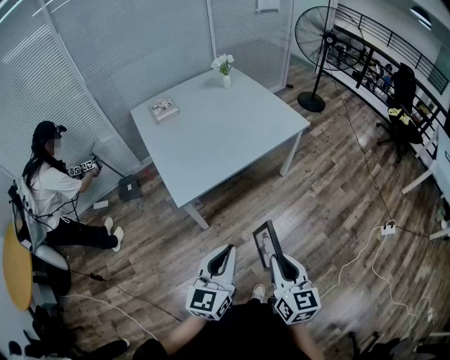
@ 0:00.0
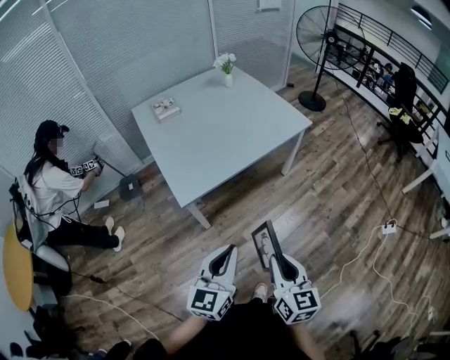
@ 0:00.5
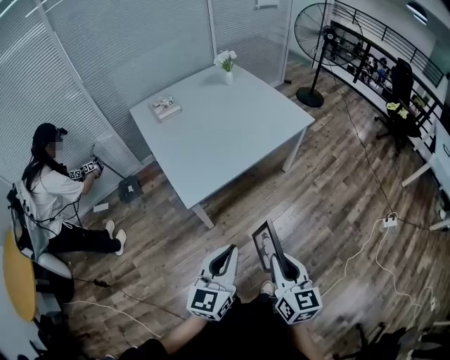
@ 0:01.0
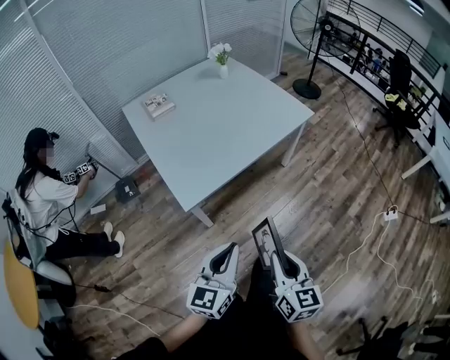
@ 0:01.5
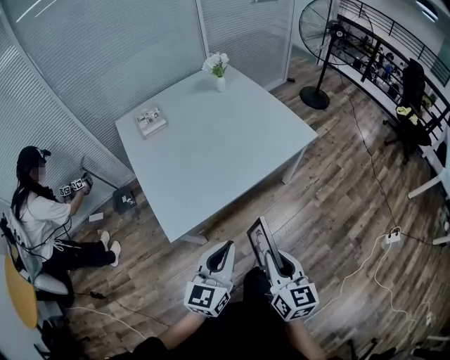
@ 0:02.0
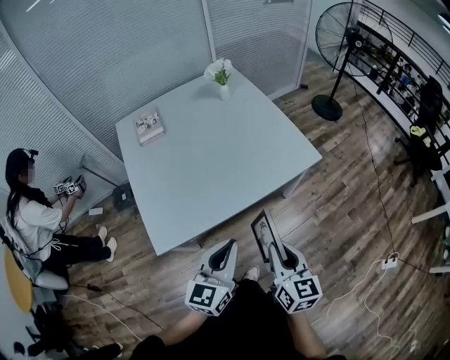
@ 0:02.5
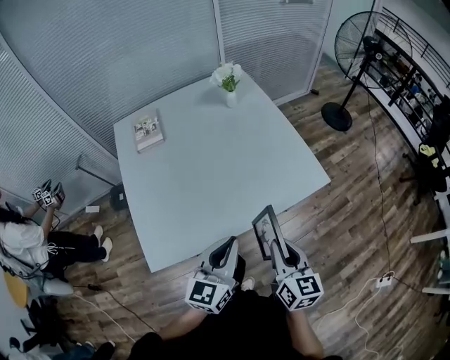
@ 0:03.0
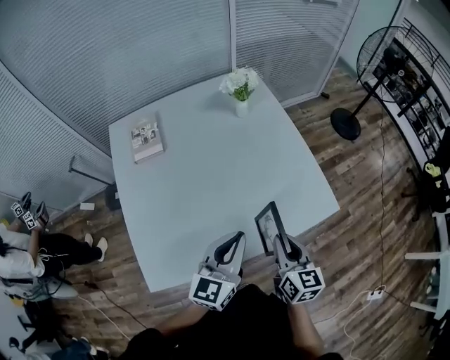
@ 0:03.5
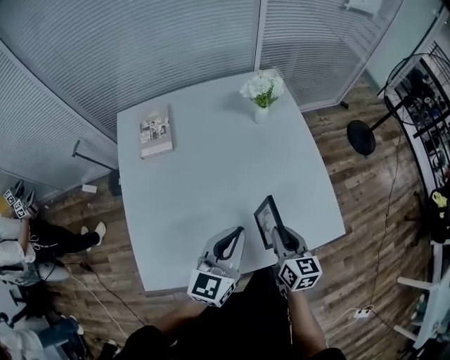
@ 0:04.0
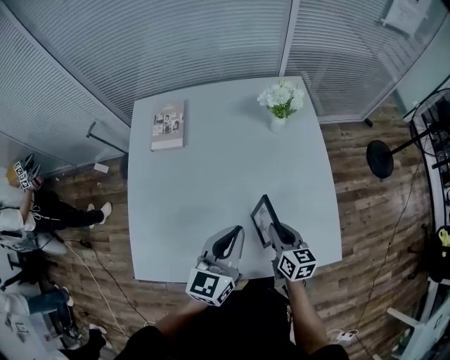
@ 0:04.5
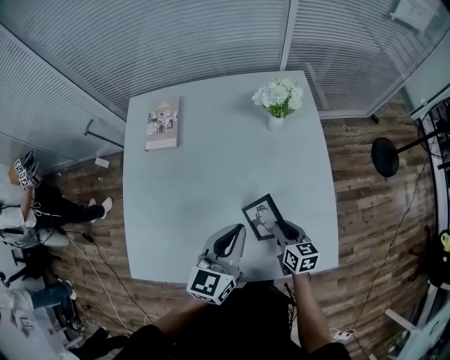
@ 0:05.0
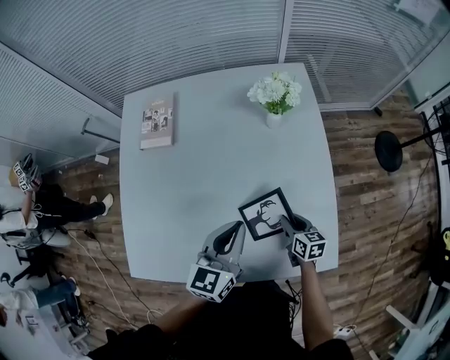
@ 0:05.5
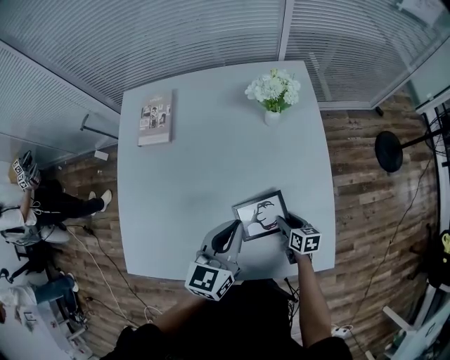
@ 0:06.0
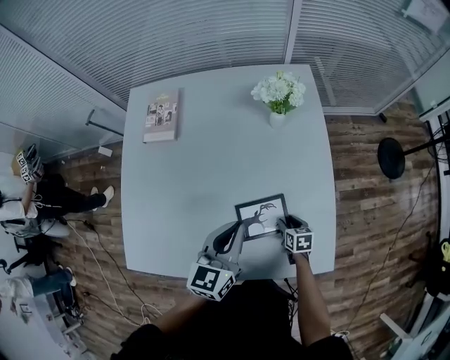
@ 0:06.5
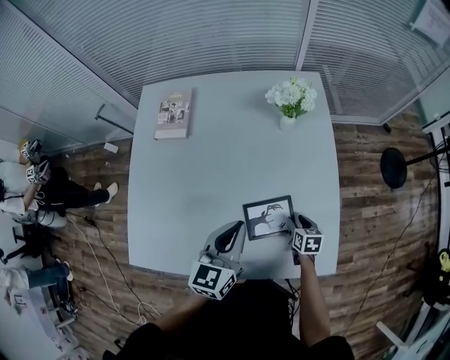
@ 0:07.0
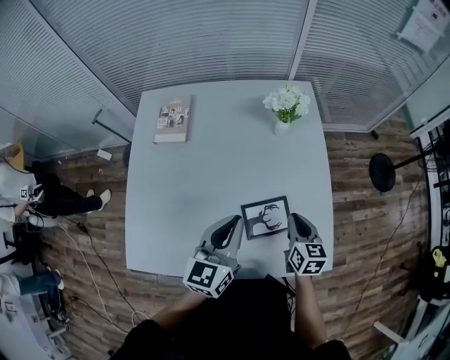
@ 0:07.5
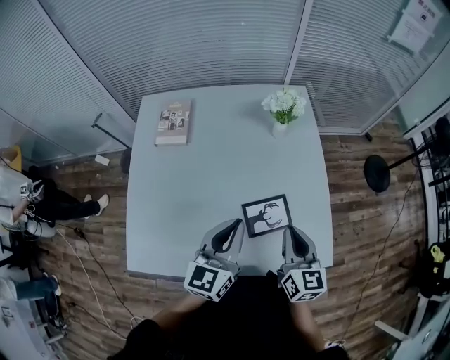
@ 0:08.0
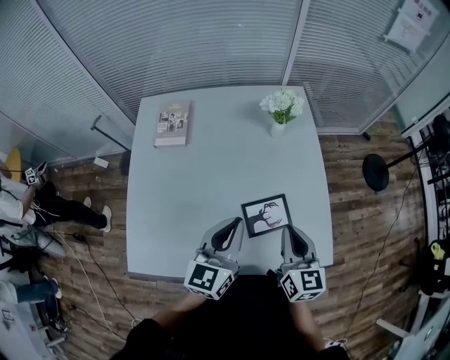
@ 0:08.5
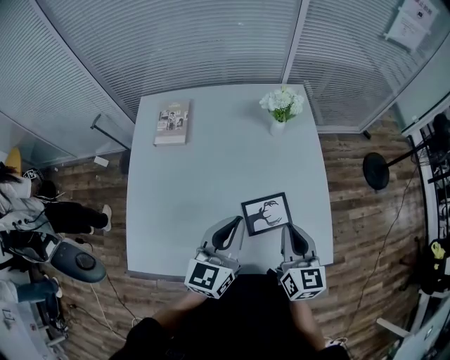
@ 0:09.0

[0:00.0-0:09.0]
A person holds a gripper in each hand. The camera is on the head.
0:00.0 to 0:02.0: Both grippers travel together forward, roughly 20 cm.
0:02.0 to 0:04.5: The two grippers travel together, about 60 cm. The right gripper swivels some 30 degrees. Meanwhile the left gripper changes its angle by roughly 30 degrees.
0:04.5 to 0:07.0: The right gripper shifts about 20 cm downward and to the right, rotates roughly 30 degrees, and opens up.
0:07.0 to 0:09.0: The left gripper travels upward by some 5 cm, while the right gripper goes approximately 30 cm upward, angles its fingers upward, by approximately 40 degrees, and closes.

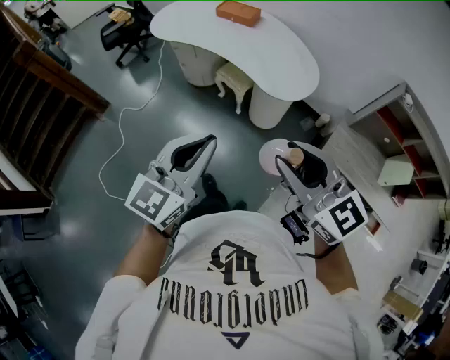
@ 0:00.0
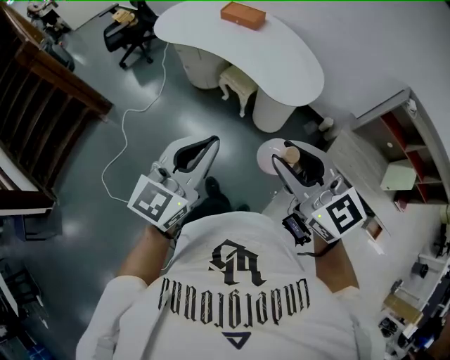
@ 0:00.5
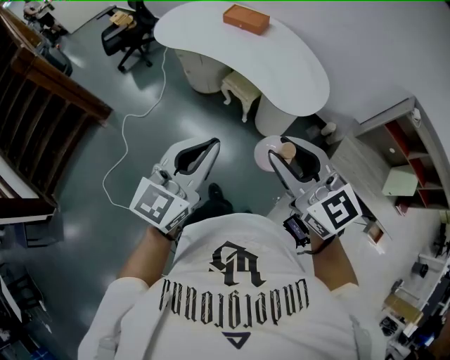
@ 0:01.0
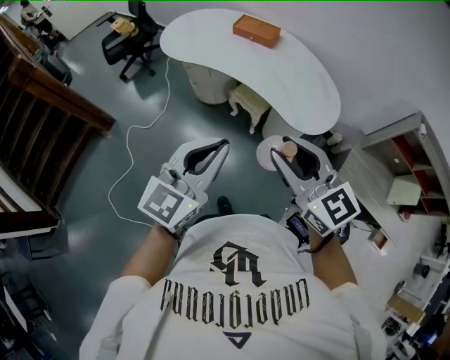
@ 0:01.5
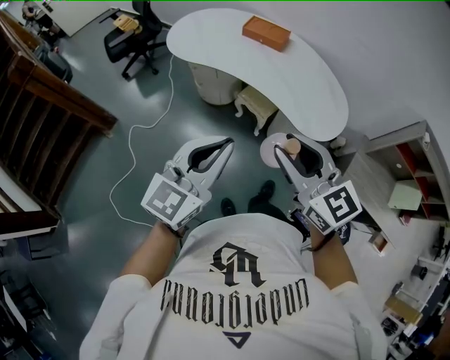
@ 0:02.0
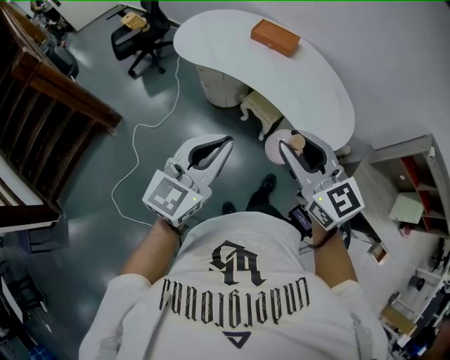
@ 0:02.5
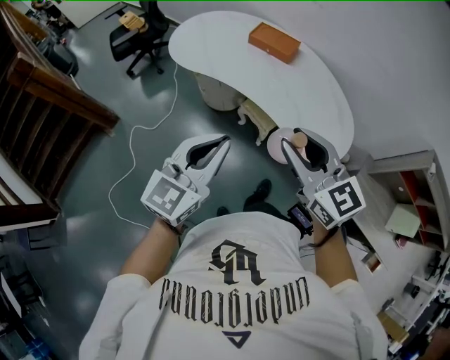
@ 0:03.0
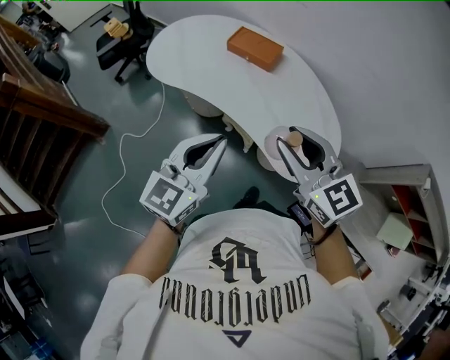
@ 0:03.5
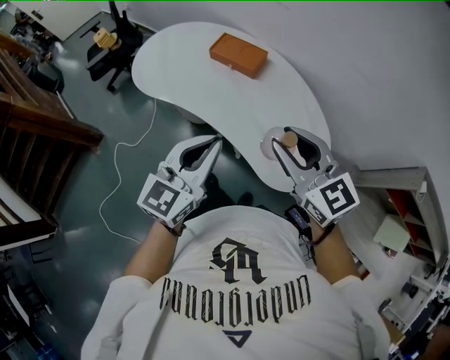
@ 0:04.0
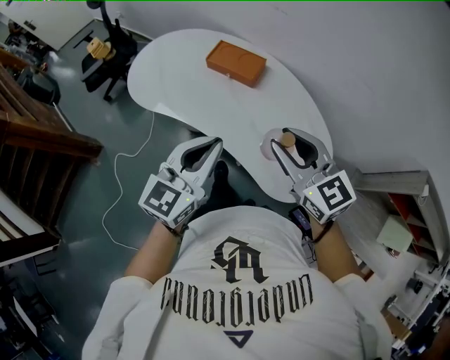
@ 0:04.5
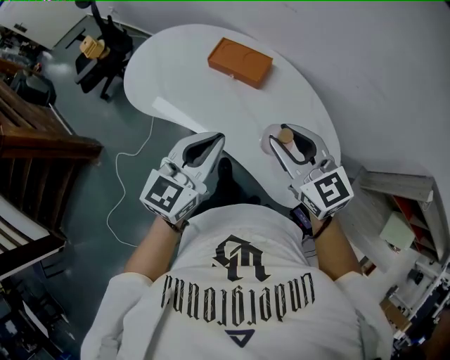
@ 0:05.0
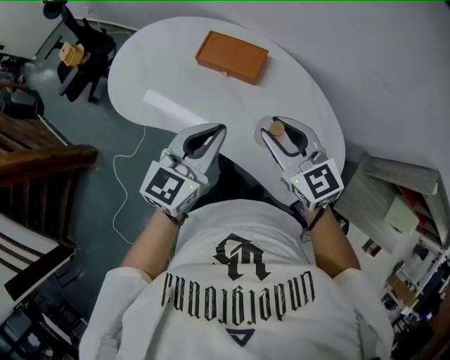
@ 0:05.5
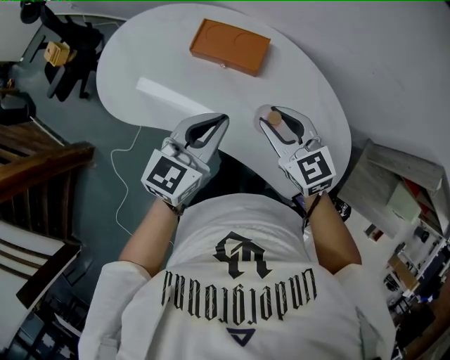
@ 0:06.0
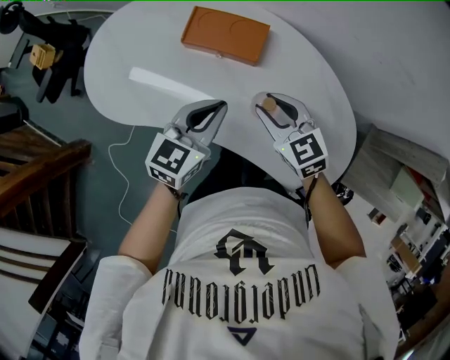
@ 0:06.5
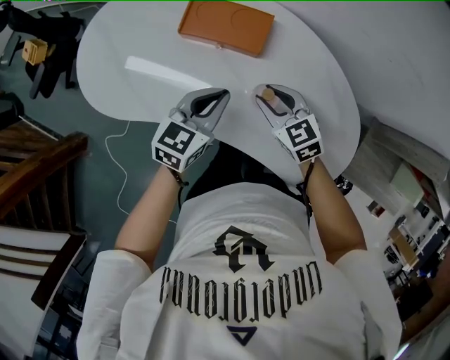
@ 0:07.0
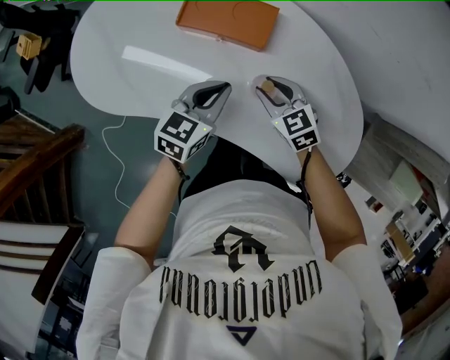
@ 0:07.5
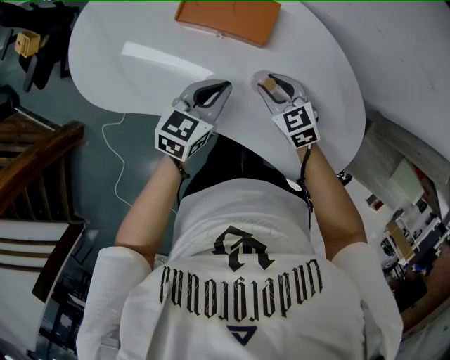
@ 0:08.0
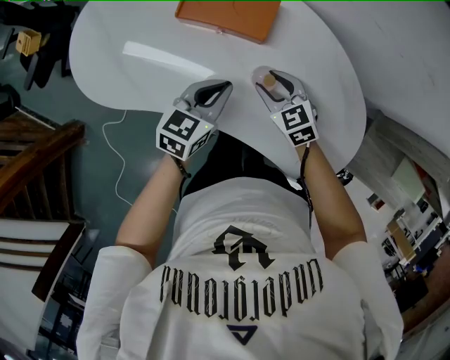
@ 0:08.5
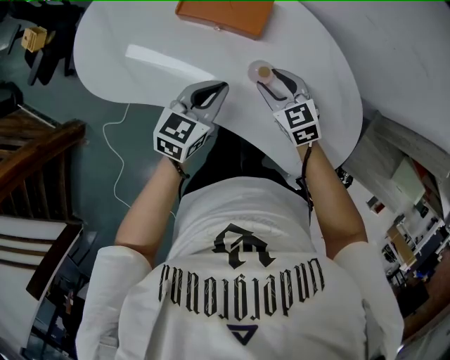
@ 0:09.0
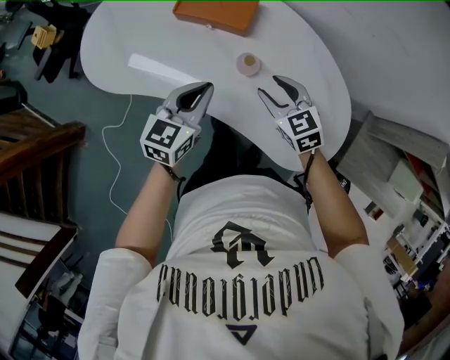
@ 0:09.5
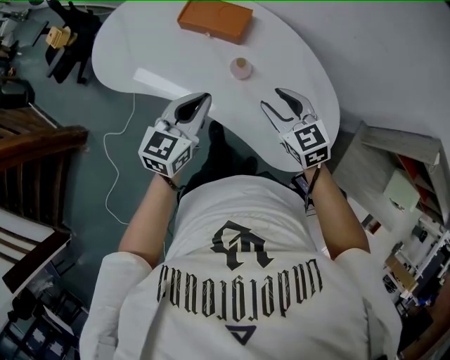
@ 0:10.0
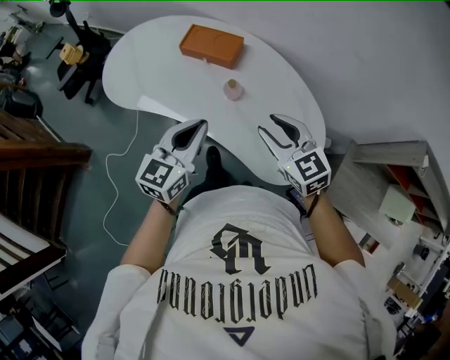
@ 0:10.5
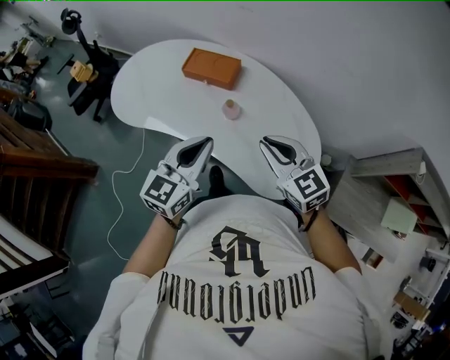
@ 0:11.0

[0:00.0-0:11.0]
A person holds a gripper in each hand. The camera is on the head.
0:00.0 to 0:02.0: Both grippers move forward and to the left, roughly 25 cm.
0:02.0 to 0:03.5: Both grippers travel together forward and to the right, some 25 cm.
0:03.5 to 0:05.5: The left gripper heads forward, covering approximately 25 cm. The right gripper heads forward and downward, covering about 25 cm.
0:05.5 to 0:07.5: The right gripper heads downward, covering approximately 25 cm, and turns by roughly 20 degrees; the left gripper shifts approximately 25 cm downward and forward.
0:07.5 to 0:09.0: The left gripper heads backward, covering approximately 5 cm.
0:09.0 to 0:11.0: The right gripper heads upward, backward and to the right, covering about 35 cm, swivels about 20 degrees, and closes its fingers. The left gripper heads upward and backward, covering approximately 30 cm, and changes its angle by some 20 degrees.

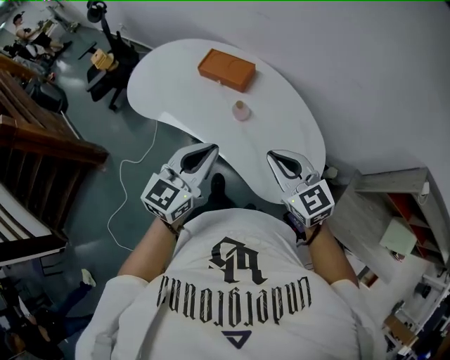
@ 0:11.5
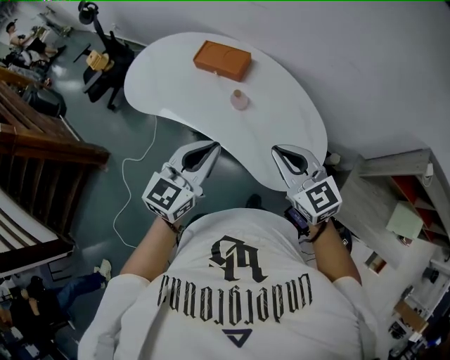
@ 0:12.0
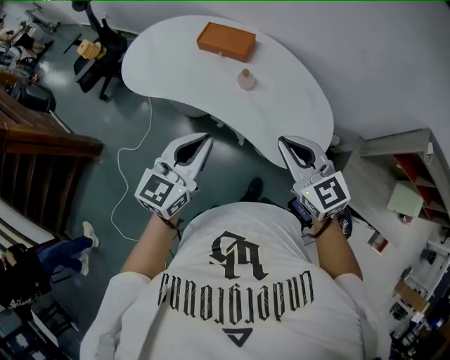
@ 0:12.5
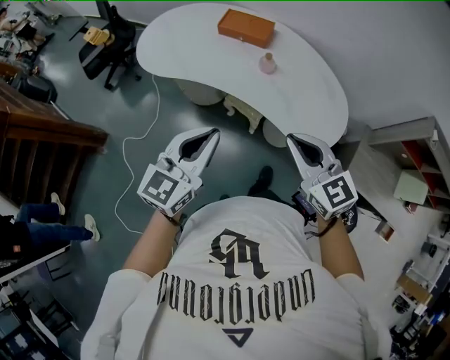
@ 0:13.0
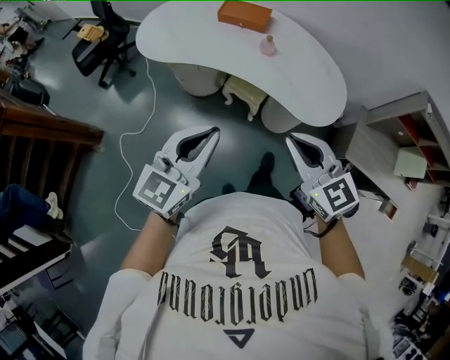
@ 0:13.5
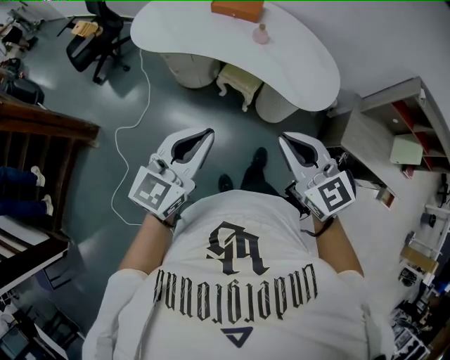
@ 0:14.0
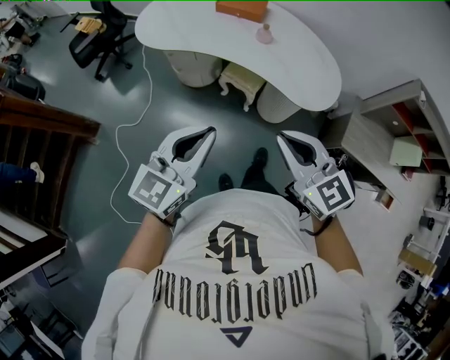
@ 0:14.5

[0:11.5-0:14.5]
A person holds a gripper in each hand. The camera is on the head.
0:11.5 to 0:13.0: The left gripper moves to the left and backward, approximately 20 cm, while the right gripper heads backward and to the left, covering about 20 cm.
0:13.0 to 0:14.5: The left gripper heads backward, covering roughly 15 cm. The right gripper is displaced backward and to the left by roughly 20 cm.

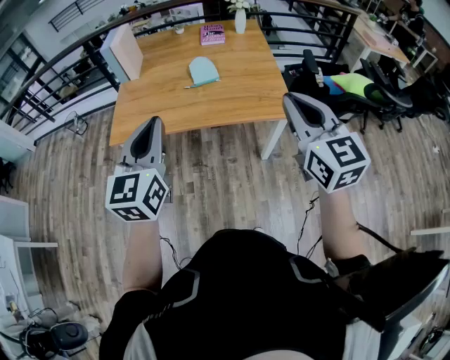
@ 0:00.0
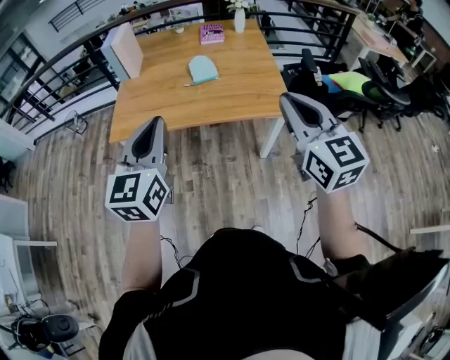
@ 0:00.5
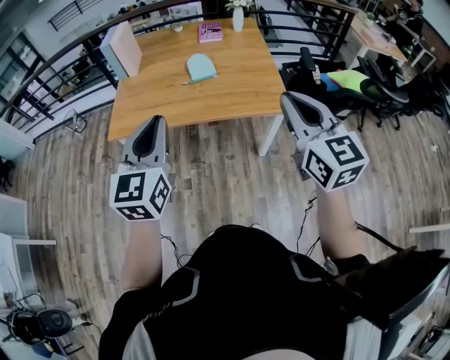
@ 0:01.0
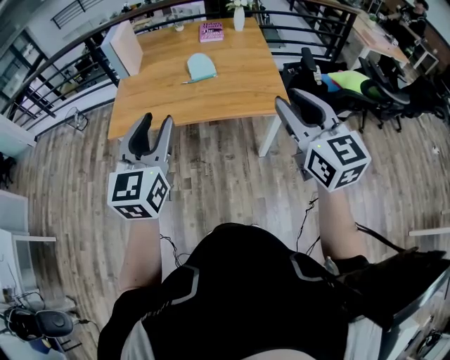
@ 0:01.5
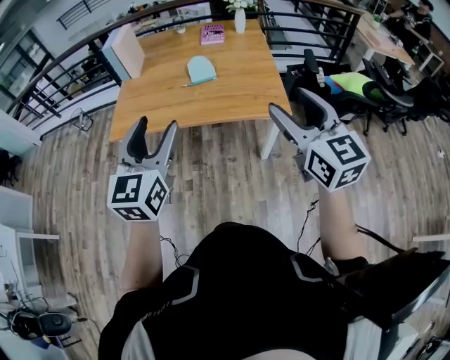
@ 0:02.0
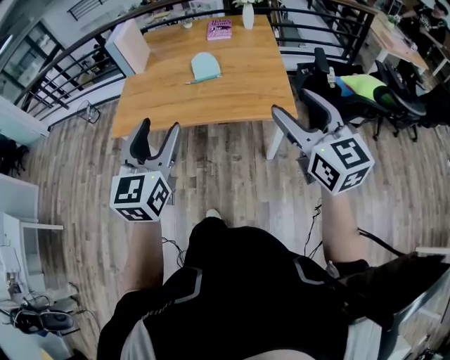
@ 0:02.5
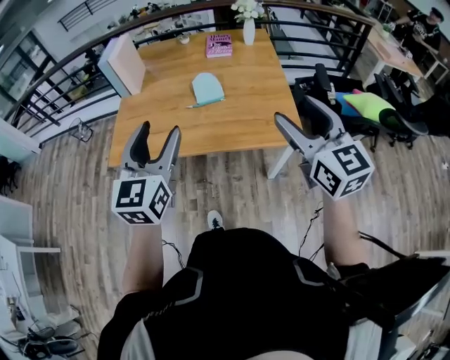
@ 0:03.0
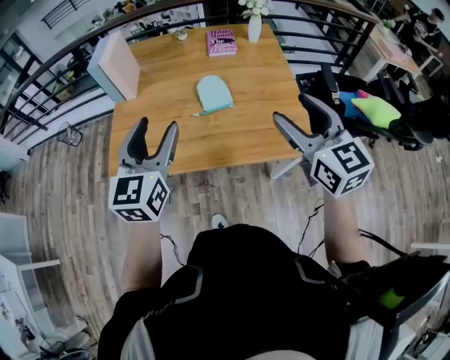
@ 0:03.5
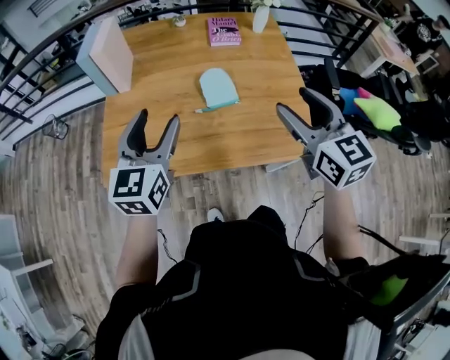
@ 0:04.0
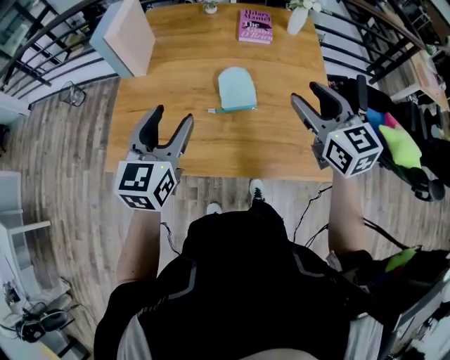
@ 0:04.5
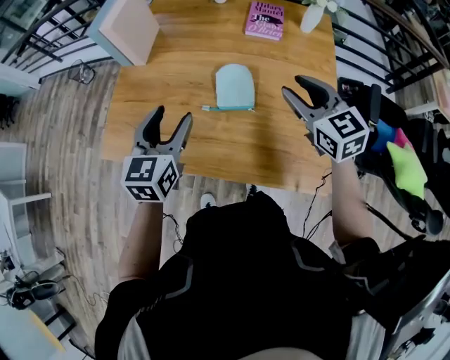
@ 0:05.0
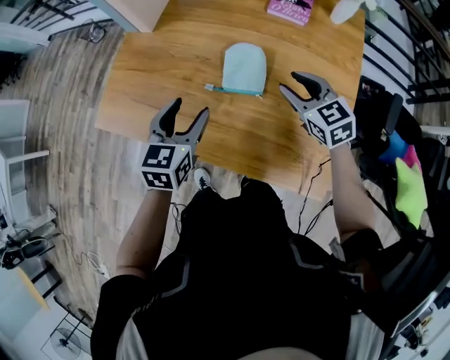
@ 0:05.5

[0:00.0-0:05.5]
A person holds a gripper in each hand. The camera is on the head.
0:00.0 to 0:02.0: The right gripper moves roughly 5 cm, and opens up, while the left gripper travels to the right by roughly 5 cm, and opens its fingers.
0:02.0 to 0:03.5: The grippers both shift forward by approximately 25 cm.
0:03.5 to 0:05.5: The left gripper travels downward by some 20 cm, and swivels roughly 30 degrees. The right gripper changes place by some 40 cm, rotates about 40 degrees, and closes.
